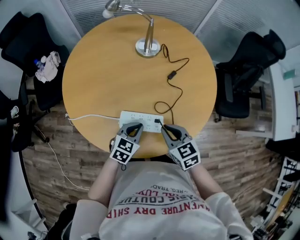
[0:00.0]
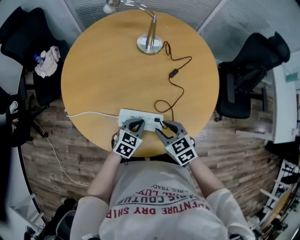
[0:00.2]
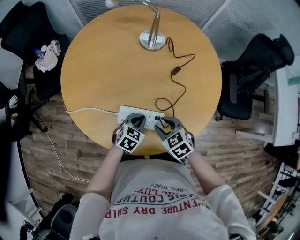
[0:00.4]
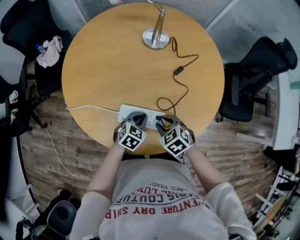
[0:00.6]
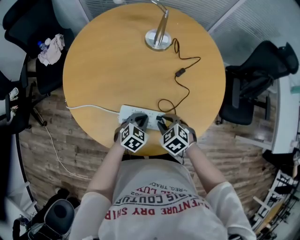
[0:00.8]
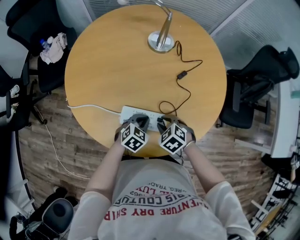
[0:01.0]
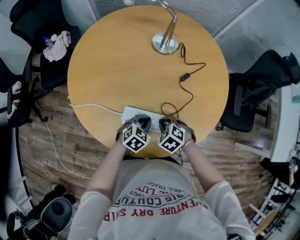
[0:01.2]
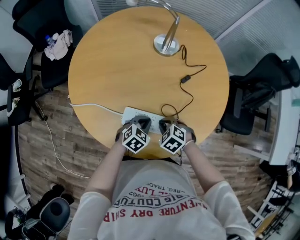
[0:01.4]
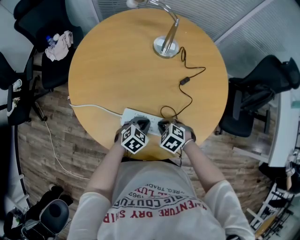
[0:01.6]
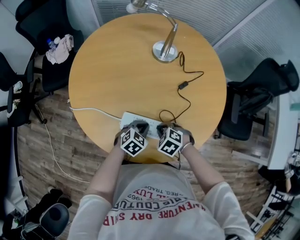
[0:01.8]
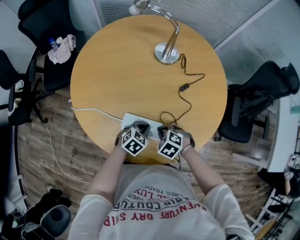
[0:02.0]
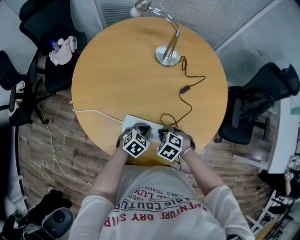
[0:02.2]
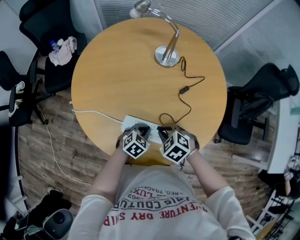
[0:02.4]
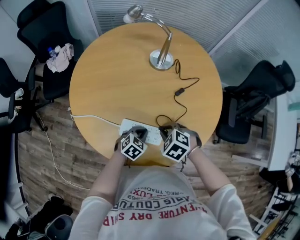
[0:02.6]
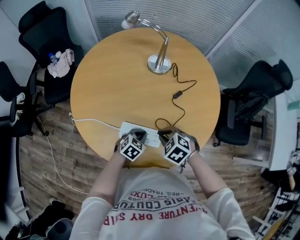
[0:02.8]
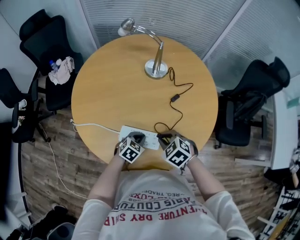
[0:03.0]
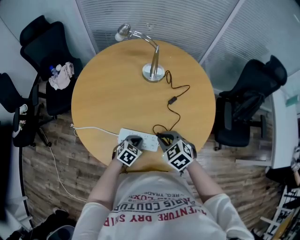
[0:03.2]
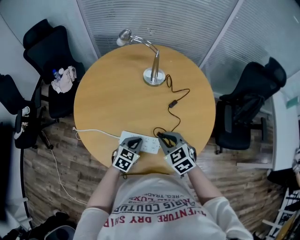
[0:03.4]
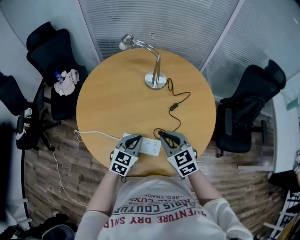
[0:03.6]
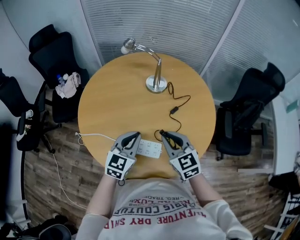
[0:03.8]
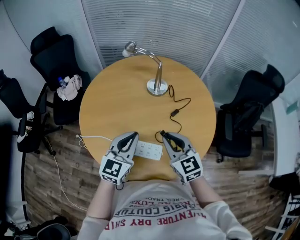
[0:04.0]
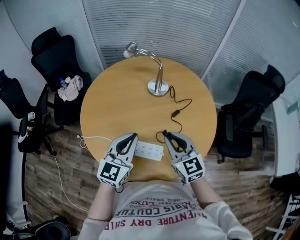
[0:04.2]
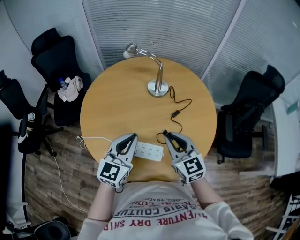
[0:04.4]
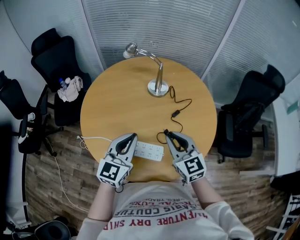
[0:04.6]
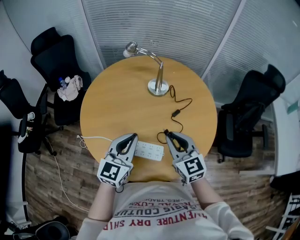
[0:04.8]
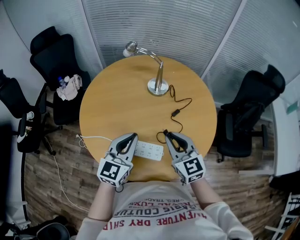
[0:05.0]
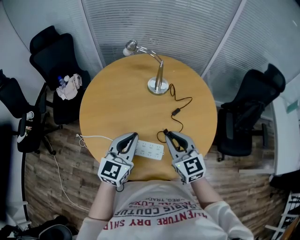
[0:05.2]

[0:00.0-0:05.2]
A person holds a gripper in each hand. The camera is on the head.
0:00.0 to 0:01.8: The left gripper is displaced downward by approximately 10 cm, while the right gripper goes roughly 15 cm downward, points its fingers roughly 30 degrees further downward, and opens, then closes once more.
0:01.8 to 0:03.4: The left gripper is displaced upward by roughly 5 cm. The right gripper is displaced upward by roughly 15 cm, and tilts its fingers about 30 degrees upward.
0:03.4 to 0:05.2: The left gripper is displaced upward by some 20 cm, and points its fingers roughly 30 degrees further upward, while the right gripper travels upward by some 10 cm, and changes its angle by roughly 30 degrees.

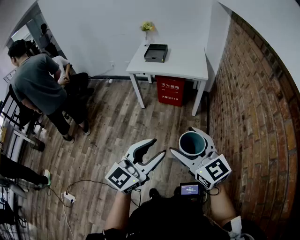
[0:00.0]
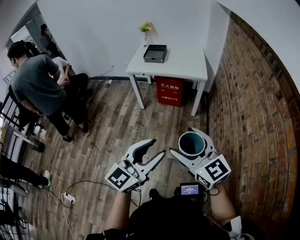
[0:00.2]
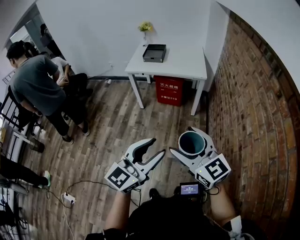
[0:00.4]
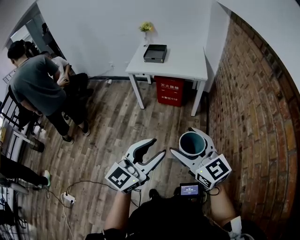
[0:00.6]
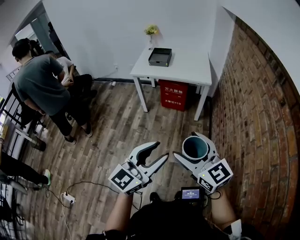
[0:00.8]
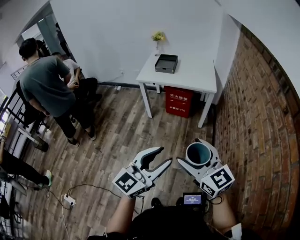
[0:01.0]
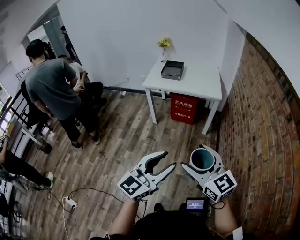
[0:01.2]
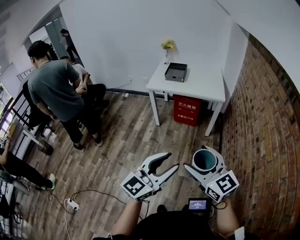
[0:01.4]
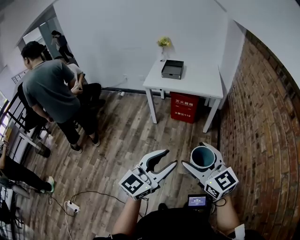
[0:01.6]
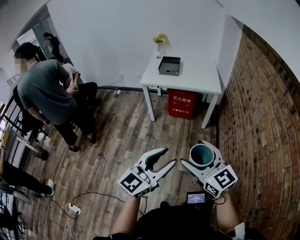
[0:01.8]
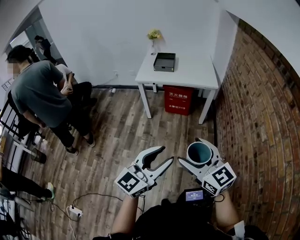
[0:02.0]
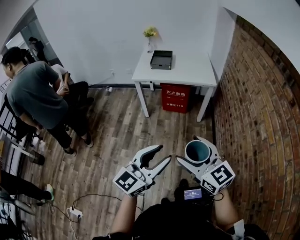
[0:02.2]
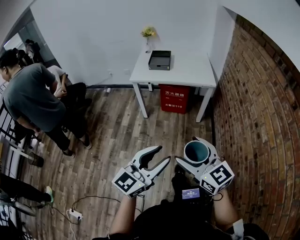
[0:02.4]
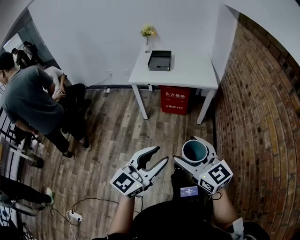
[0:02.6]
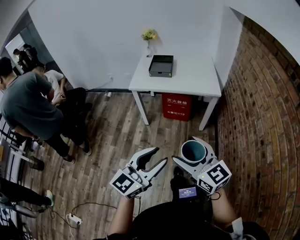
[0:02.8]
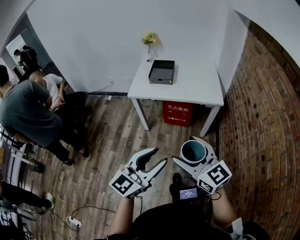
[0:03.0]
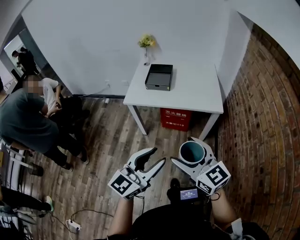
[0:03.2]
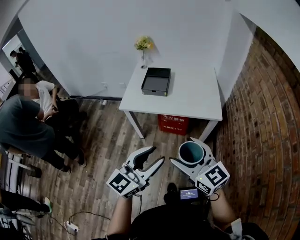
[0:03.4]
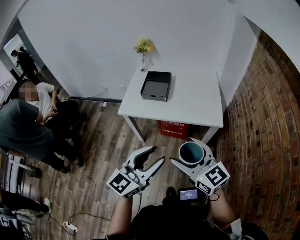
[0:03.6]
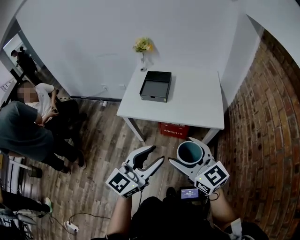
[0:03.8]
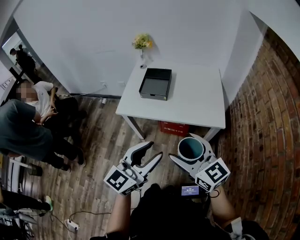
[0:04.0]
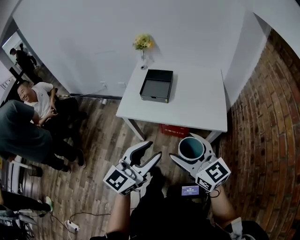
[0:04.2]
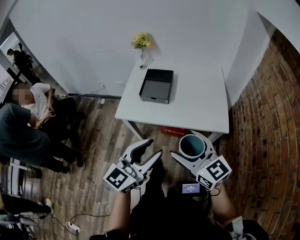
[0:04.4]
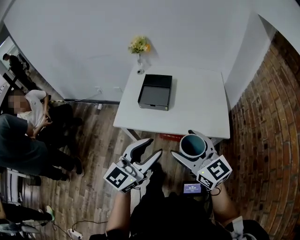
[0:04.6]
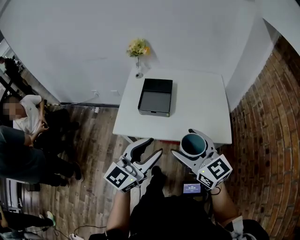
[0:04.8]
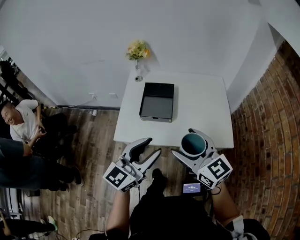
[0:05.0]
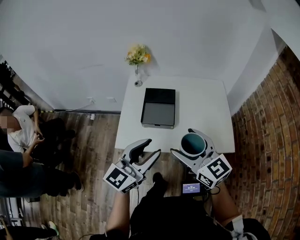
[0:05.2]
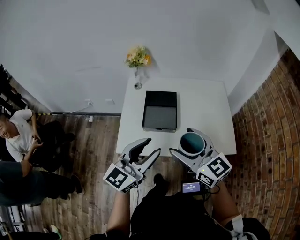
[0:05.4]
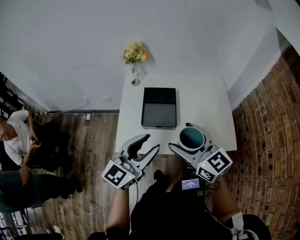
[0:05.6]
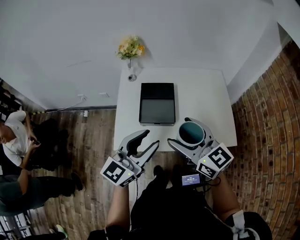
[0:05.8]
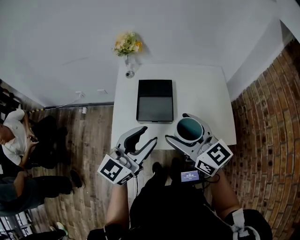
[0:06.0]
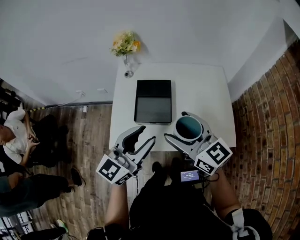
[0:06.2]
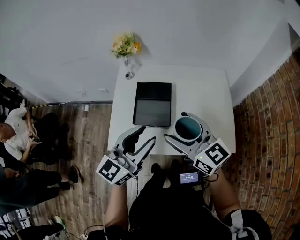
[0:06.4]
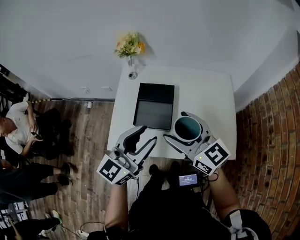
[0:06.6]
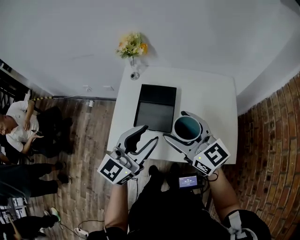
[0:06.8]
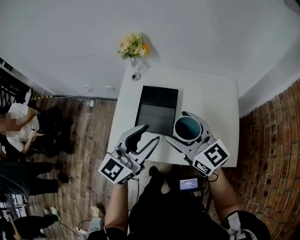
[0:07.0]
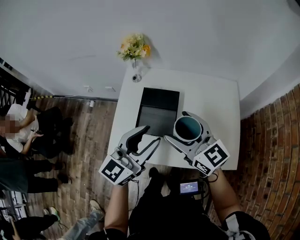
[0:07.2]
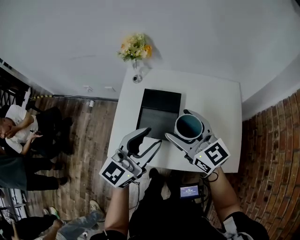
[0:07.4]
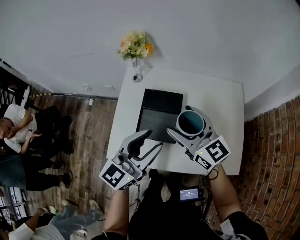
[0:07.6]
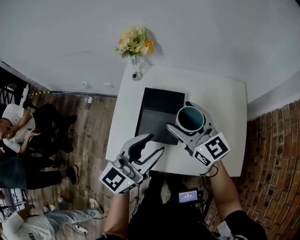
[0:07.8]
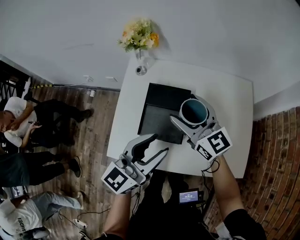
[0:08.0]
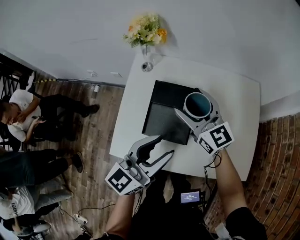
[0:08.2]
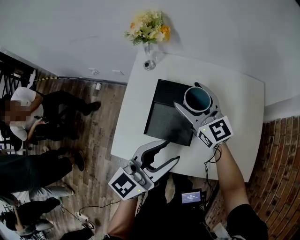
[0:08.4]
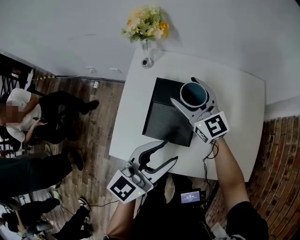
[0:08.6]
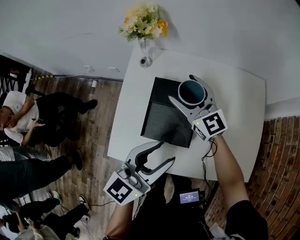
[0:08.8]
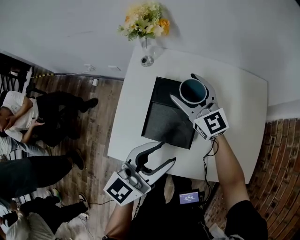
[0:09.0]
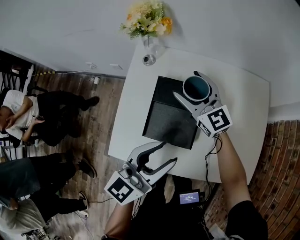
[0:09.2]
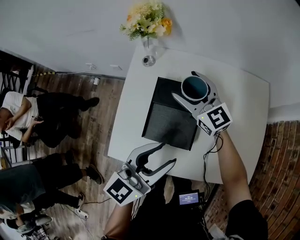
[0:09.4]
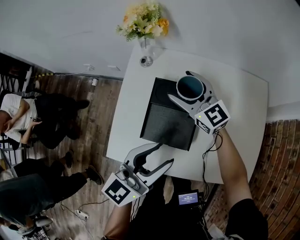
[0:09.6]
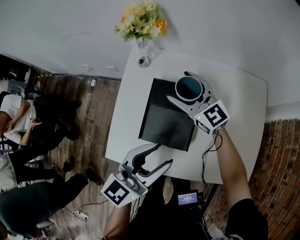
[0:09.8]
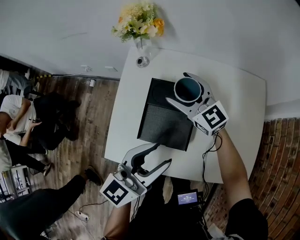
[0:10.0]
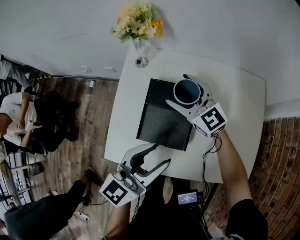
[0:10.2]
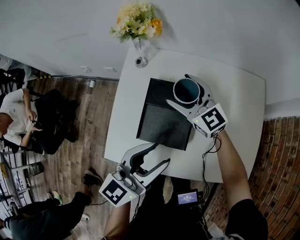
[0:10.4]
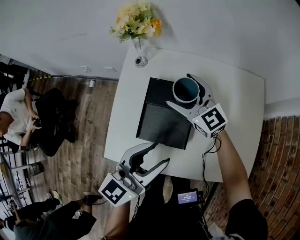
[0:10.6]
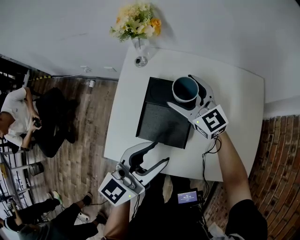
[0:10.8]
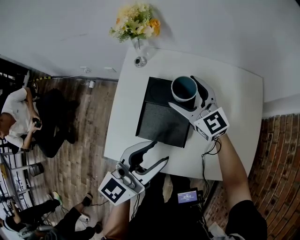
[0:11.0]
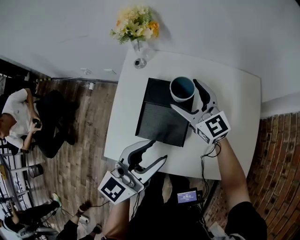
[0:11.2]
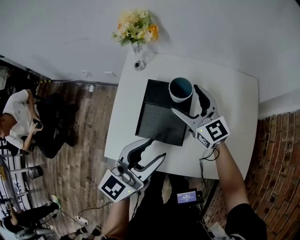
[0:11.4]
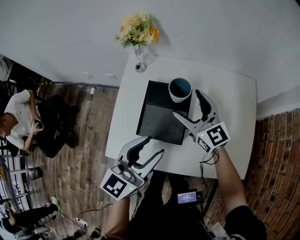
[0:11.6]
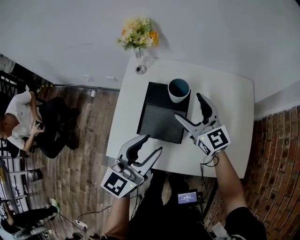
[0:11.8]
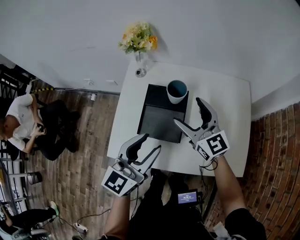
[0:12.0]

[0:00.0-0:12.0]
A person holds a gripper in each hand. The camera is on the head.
0:00.0 to 0:01.6: The grippers both shift to the left by approximately 5 cm.
0:01.6 to 0:03.0: Both grippers travel together forward, about 25 cm.
0:03.0 to 0:04.4: Both grippers move forward, approximately 30 cm.
0:04.4 to 0:06.0: Both grippers move forward and to the left, some 30 cm.
0:06.0 to 0:07.6: The right gripper goes about 15 cm forward, while the left gripper travels forward by about 10 cm.
0:07.6 to 0:09.0: The right gripper moves forward and downward, about 20 cm. Meanwhile the left gripper moves downward, roughly 5 cm.
0:09.0 to 0:10.4: There are only small adjustments of the grippers.
0:10.4 to 0:12.0: The right gripper moves backward, upward and to the right, some 15 cm.

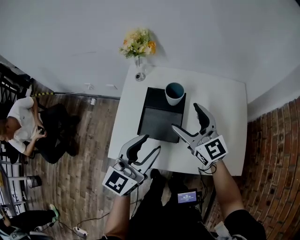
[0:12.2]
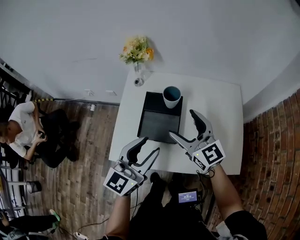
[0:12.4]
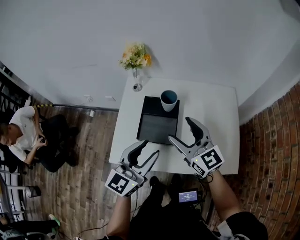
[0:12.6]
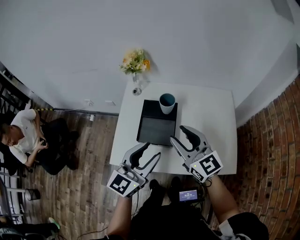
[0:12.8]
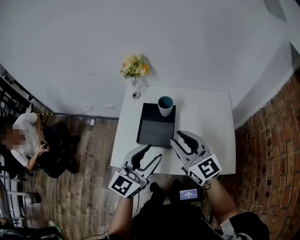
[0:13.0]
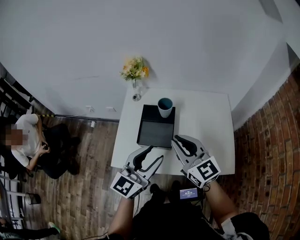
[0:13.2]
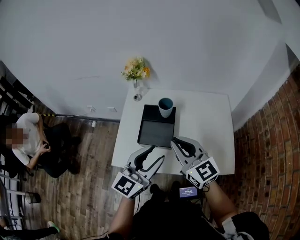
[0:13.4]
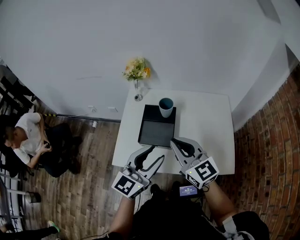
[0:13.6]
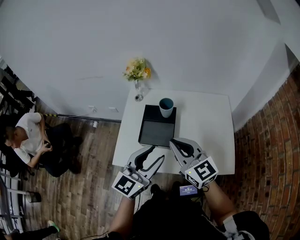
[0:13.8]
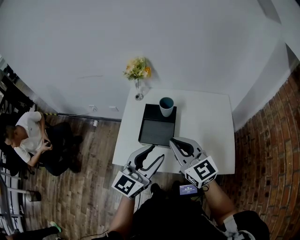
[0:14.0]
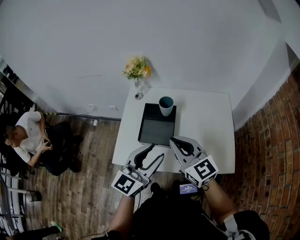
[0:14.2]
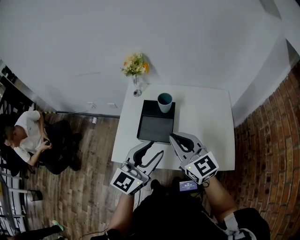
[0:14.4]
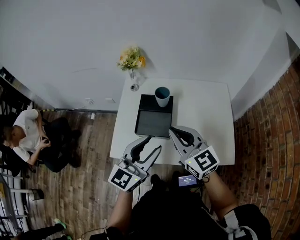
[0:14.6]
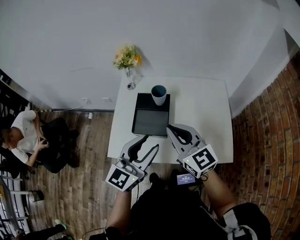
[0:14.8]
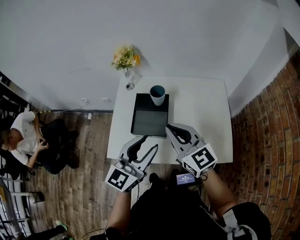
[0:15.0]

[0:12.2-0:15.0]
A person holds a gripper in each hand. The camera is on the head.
0:12.2 to 0:13.6: The right gripper travels backward and upward by some 15 cm, and closes its fingers, while the left gripper travels backward and upward by about 10 cm.
0:13.6 to 0:15.0: There are only small adjustments of the grippers.

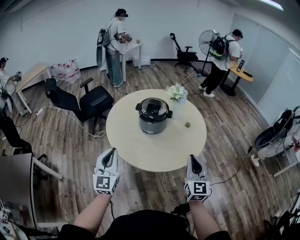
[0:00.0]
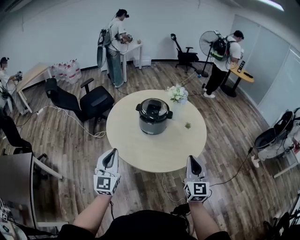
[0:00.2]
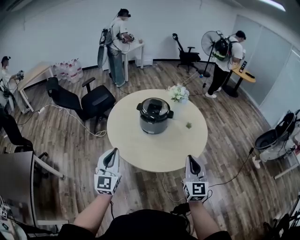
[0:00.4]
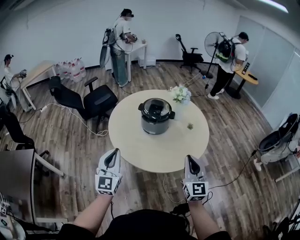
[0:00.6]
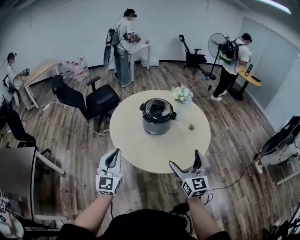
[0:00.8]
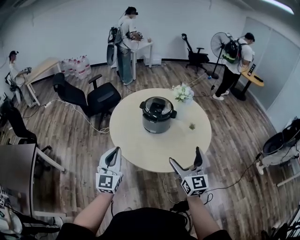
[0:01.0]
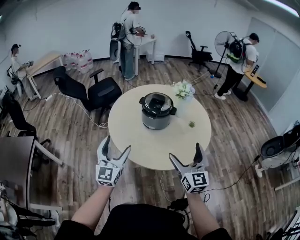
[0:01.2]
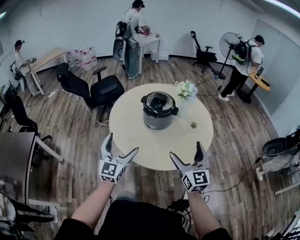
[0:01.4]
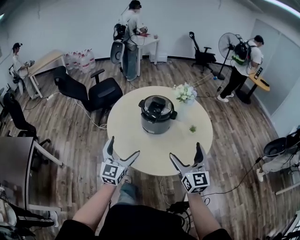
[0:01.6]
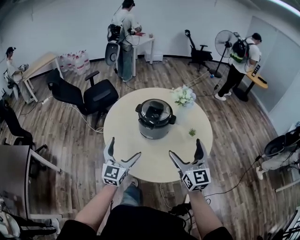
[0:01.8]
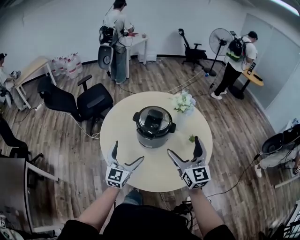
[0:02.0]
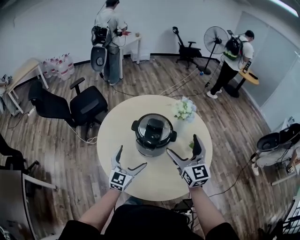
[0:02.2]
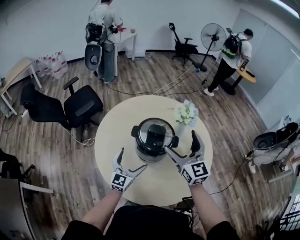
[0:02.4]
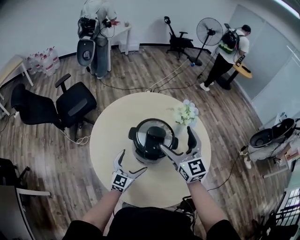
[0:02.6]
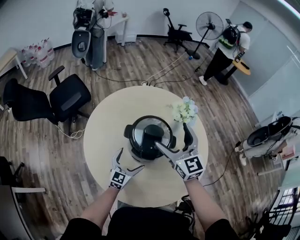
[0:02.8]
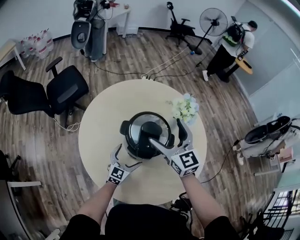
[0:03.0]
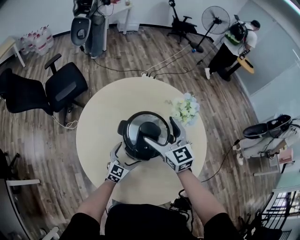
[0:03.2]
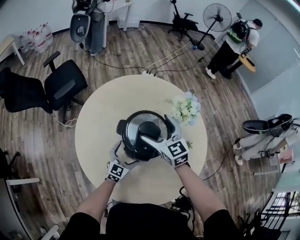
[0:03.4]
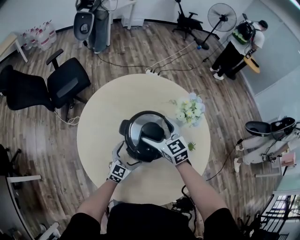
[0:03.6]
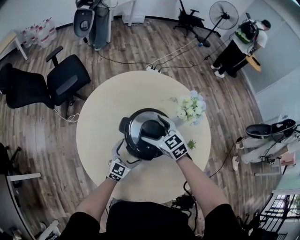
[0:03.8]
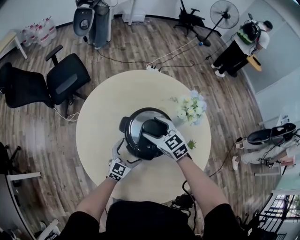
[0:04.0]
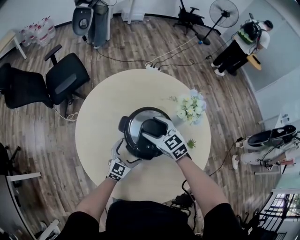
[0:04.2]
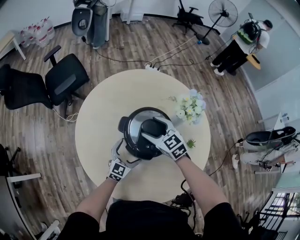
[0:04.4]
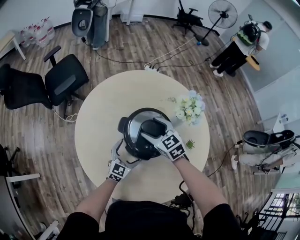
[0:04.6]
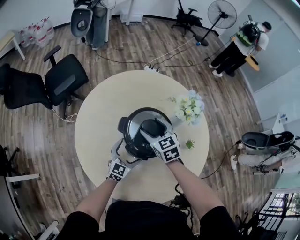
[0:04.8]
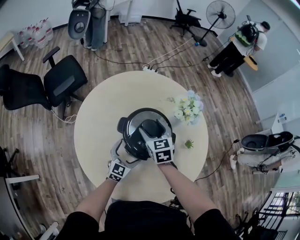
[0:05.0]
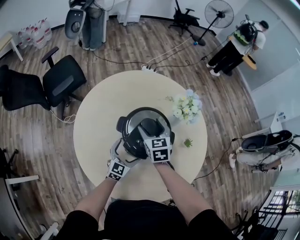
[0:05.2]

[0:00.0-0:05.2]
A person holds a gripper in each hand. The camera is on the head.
0:00.0 to 0:01.8: The right gripper goes some 15 cm forward, and opens. The left gripper goes roughly 20 cm forward, to the right and downward, and opens up.
0:01.8 to 0:03.4: The left gripper moves forward and downward, roughly 40 cm, and changes its angle by roughly 30 degrees; the right gripper goes roughly 40 cm forward and to the left, and turns by about 30 degrees.
0:03.4 to 0:05.2: The right gripper heads downward, covering some 5 cm, rotates approximately 20 degrees, and closes.
